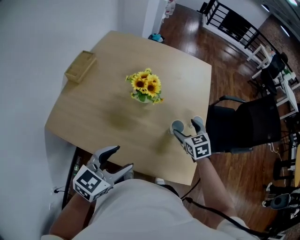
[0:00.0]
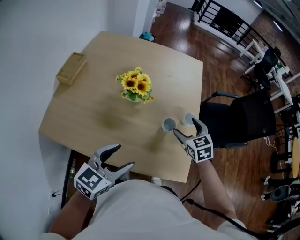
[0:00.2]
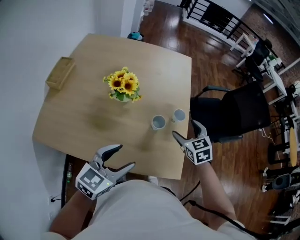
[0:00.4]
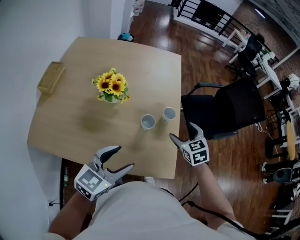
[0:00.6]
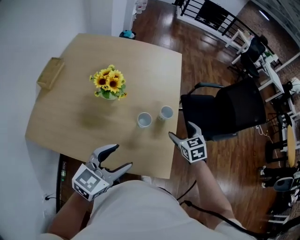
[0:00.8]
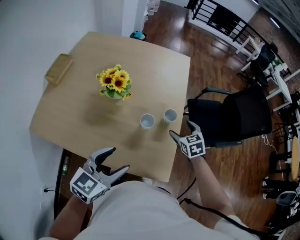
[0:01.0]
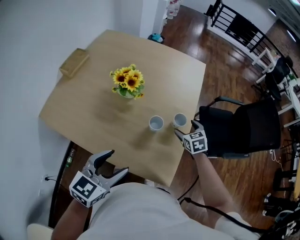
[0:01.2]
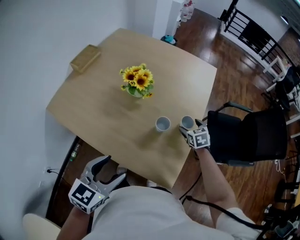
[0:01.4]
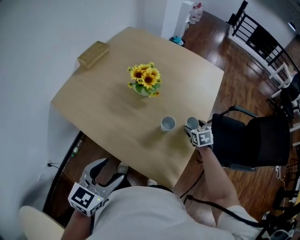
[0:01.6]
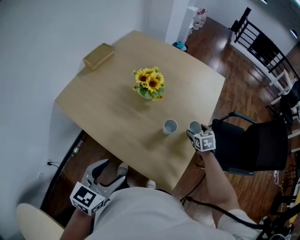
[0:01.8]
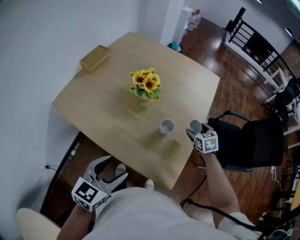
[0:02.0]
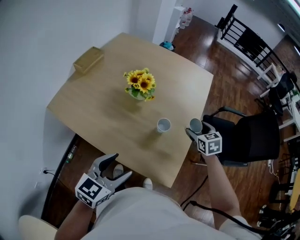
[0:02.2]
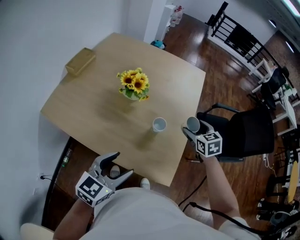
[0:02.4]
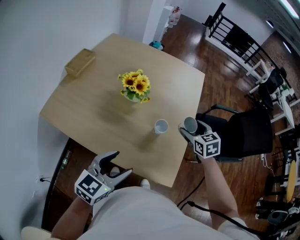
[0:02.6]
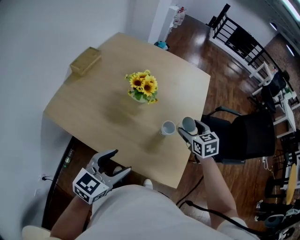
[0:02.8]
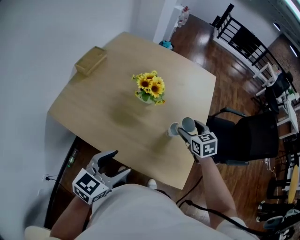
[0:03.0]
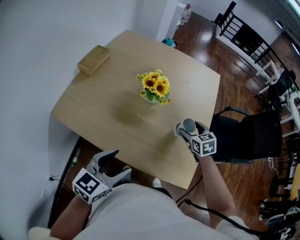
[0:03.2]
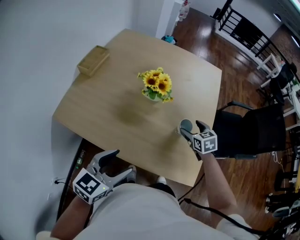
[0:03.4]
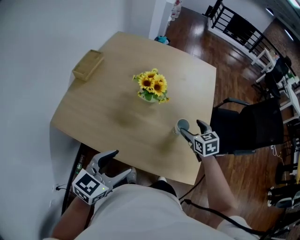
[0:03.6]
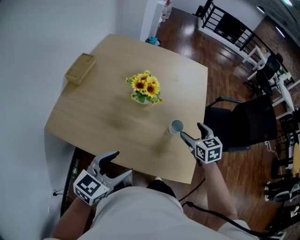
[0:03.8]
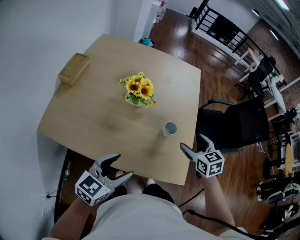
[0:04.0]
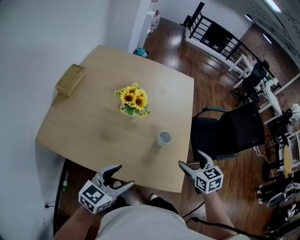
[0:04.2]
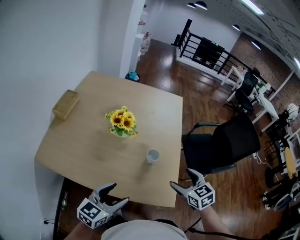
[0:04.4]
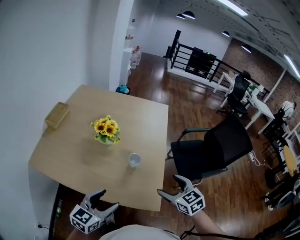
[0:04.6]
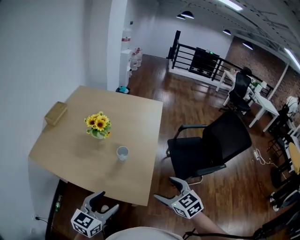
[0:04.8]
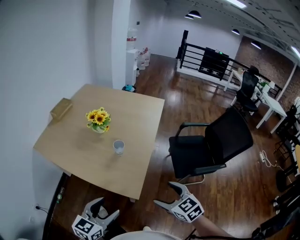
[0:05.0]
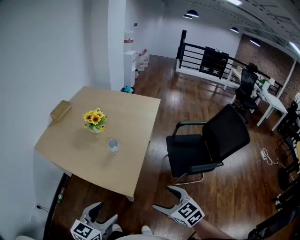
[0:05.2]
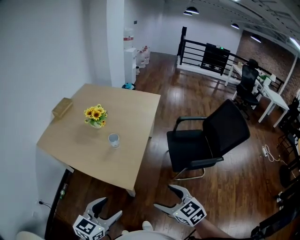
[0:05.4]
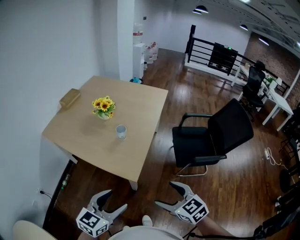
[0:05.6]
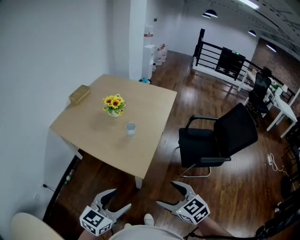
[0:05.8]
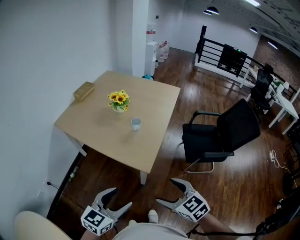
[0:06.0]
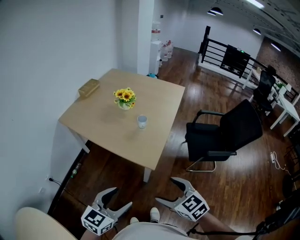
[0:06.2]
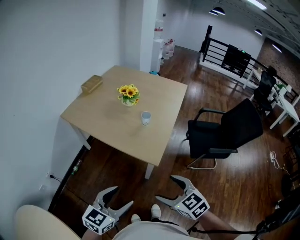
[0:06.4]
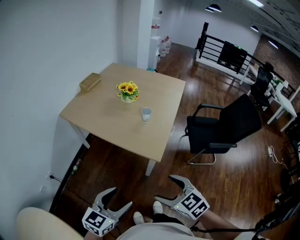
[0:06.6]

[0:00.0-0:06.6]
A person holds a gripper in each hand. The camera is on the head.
0:00.0 to 0:01.6: The left gripper ends up about 15 cm from where it was, and turns by about 20 degrees. Meanwhile the right gripper shifts by some 20 cm.
0:01.6 to 0:03.2: The left gripper is displaced to the left by approximately 10 cm. Meanwhile the right gripper goes some 15 cm to the left, upward and backward.
0:03.2 to 0:05.0: The left gripper shifts some 30 cm to the right and backward. The right gripper goes about 40 cm backward and to the right.
0:05.0 to 0:06.6: Both grippers move backward and to the left, some 25 cm.

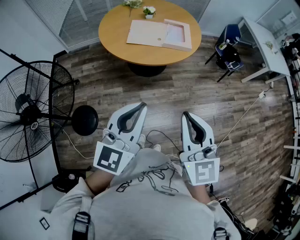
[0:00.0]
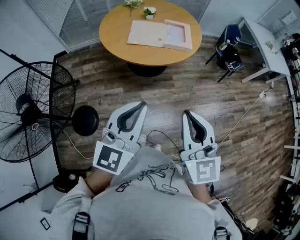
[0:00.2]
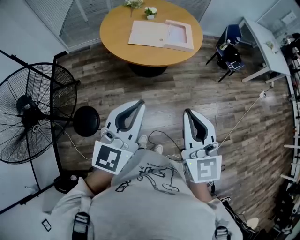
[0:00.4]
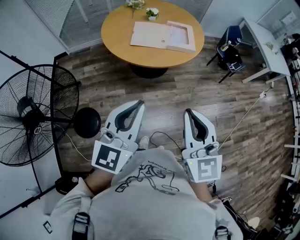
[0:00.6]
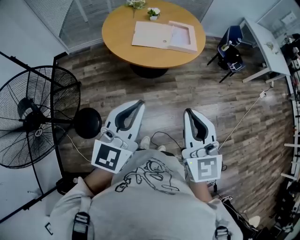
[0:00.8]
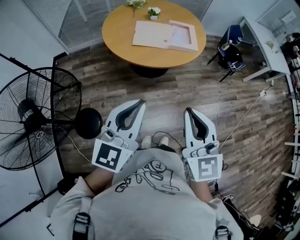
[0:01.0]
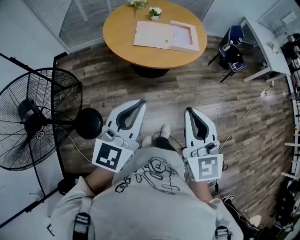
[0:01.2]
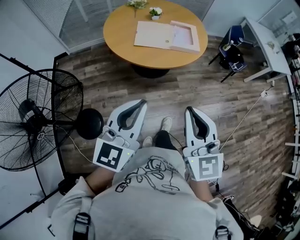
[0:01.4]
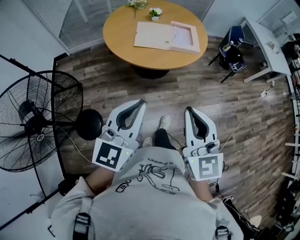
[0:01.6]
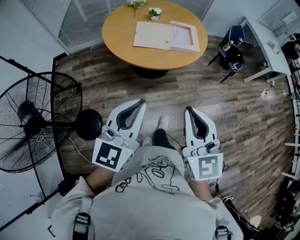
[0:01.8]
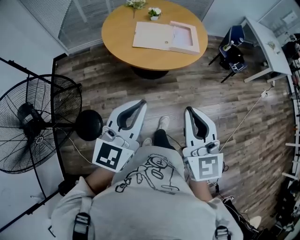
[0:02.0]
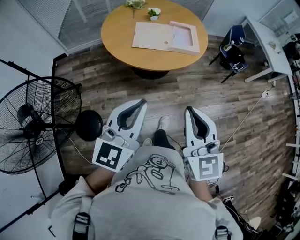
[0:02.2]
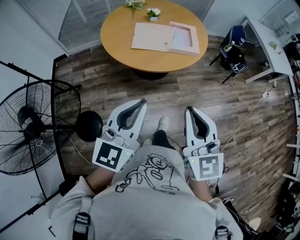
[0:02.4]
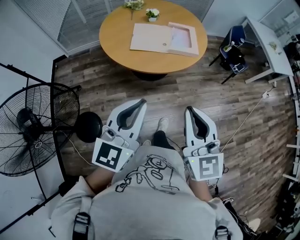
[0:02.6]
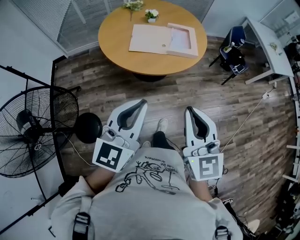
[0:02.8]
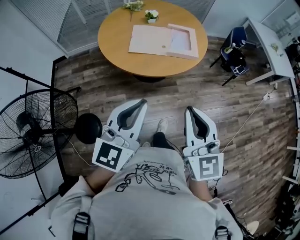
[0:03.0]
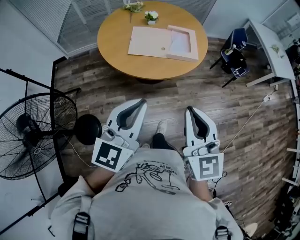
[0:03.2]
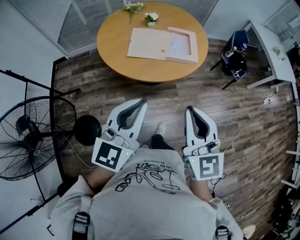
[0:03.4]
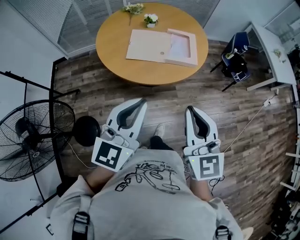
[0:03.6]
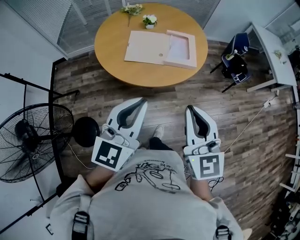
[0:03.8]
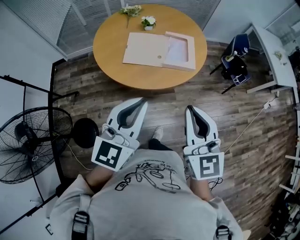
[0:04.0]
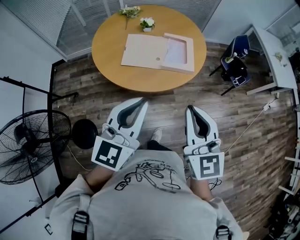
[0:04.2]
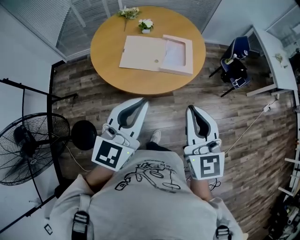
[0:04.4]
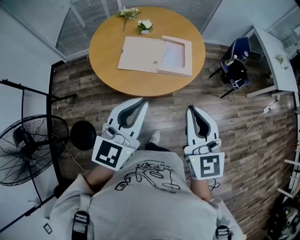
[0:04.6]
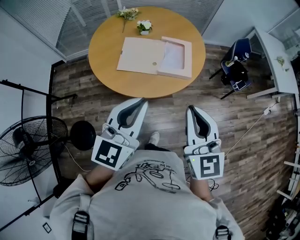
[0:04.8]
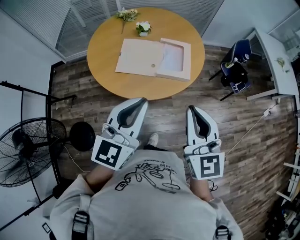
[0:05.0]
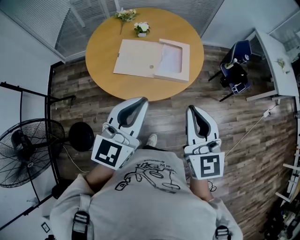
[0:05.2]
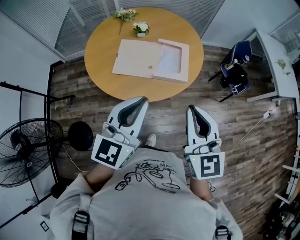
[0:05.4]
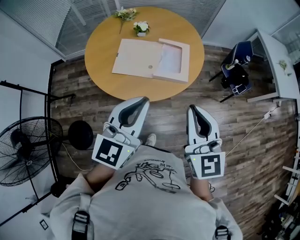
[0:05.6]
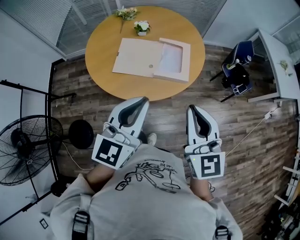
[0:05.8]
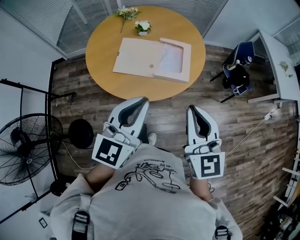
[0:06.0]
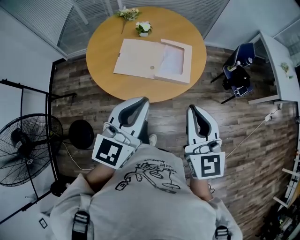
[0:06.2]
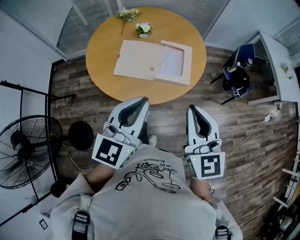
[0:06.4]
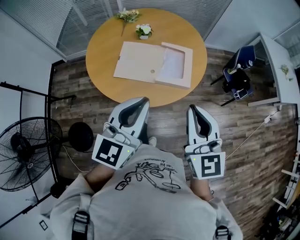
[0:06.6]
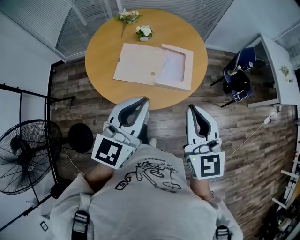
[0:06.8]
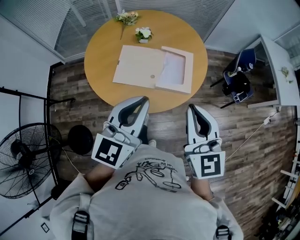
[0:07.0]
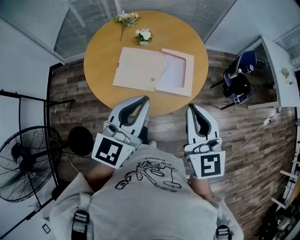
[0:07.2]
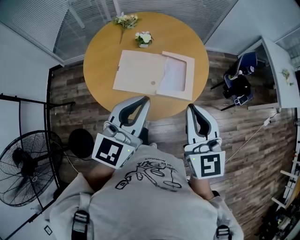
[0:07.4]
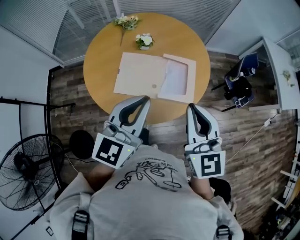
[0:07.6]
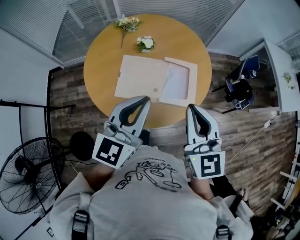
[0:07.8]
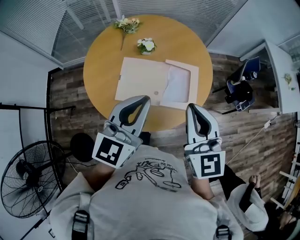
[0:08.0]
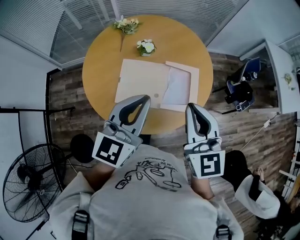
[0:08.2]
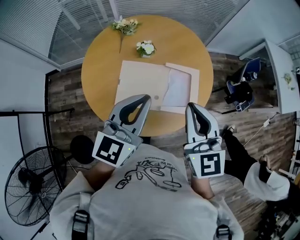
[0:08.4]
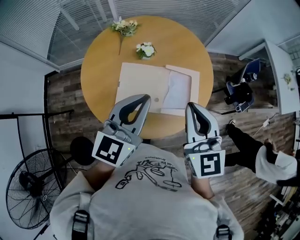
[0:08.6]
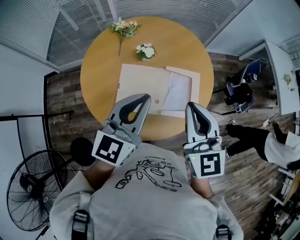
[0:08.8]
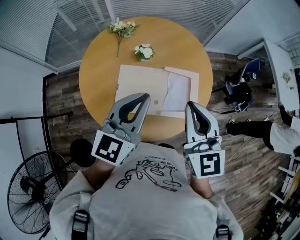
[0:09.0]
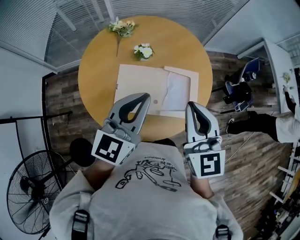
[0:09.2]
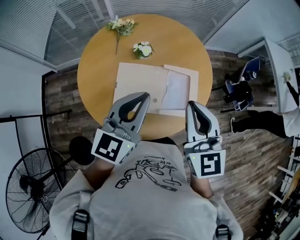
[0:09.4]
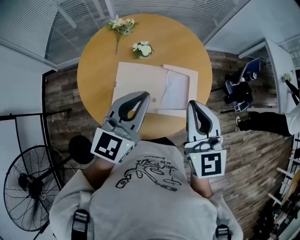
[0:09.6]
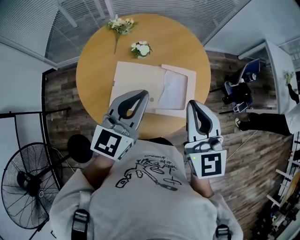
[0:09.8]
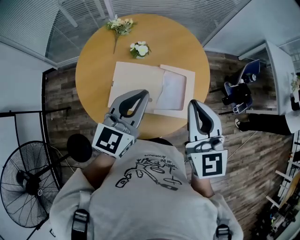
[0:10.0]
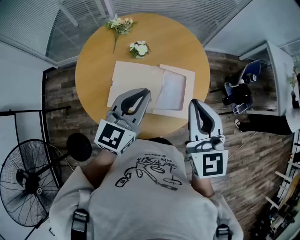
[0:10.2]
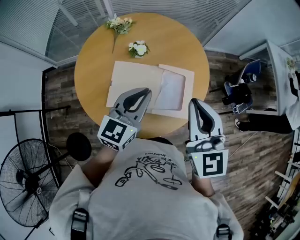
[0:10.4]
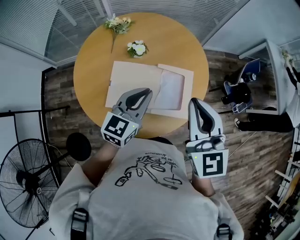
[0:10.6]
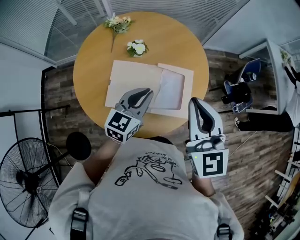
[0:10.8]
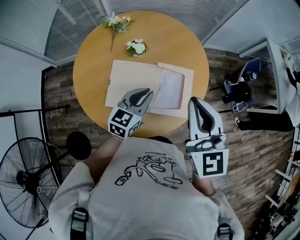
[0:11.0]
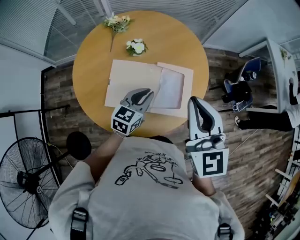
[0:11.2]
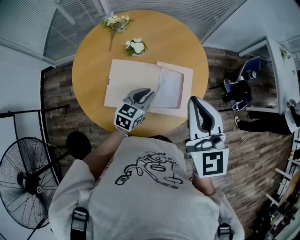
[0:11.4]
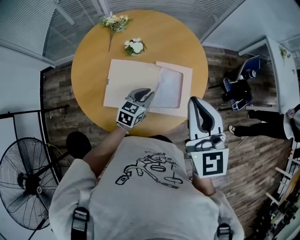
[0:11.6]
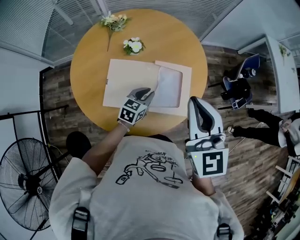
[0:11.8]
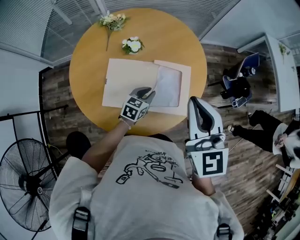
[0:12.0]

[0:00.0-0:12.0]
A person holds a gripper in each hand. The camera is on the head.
0:00.0 to 0:01.6: The left gripper shifts roughly 10 cm to the left and forward. The right gripper goes about 10 cm to the left.
0:01.6 to 0:03.0: Both grippers travel together forward, some 10 cm.
0:03.0 to 0:04.4: The two grippers go about 20 cm forward and to the right.
0:04.4 to 0:06.0: The two grippers go some 10 cm forward and to the right.
0:06.0 to 0:07.6: The two grippers go approximately 15 cm forward.
0:07.6 to 0:09.0: The right gripper shifts about 15 cm forward and to the left, while the left gripper goes approximately 15 cm forward.
0:09.0 to 0:10.4: The left gripper moves downward and to the right, some 10 cm; the right gripper is displaced to the right by approximately 5 cm.
0:10.4 to 0:12.0: The left gripper heads downward, covering some 25 cm, and rotates about 30 degrees.

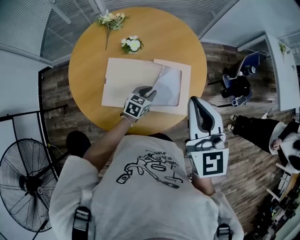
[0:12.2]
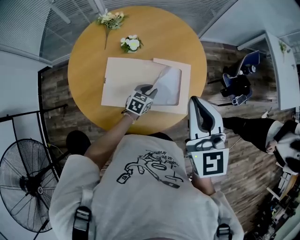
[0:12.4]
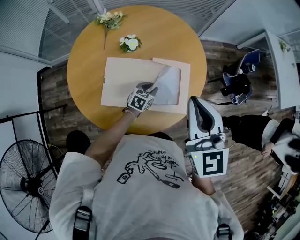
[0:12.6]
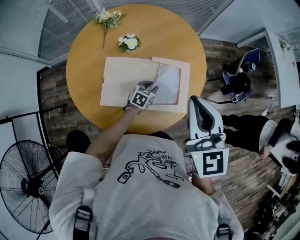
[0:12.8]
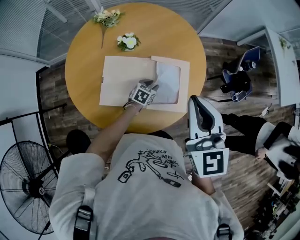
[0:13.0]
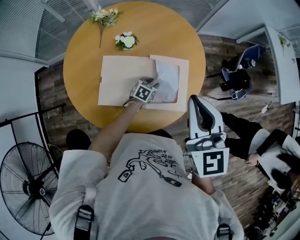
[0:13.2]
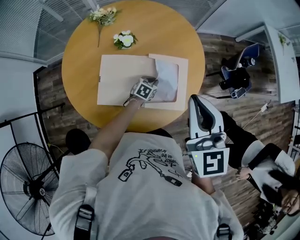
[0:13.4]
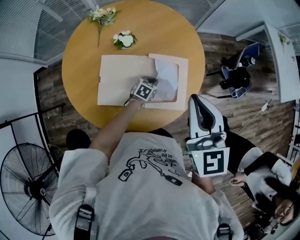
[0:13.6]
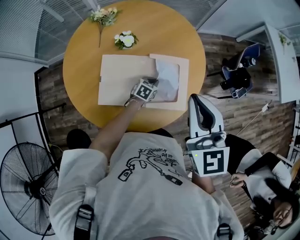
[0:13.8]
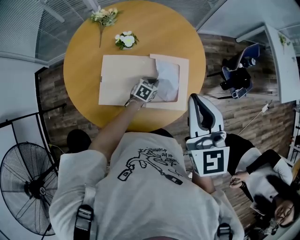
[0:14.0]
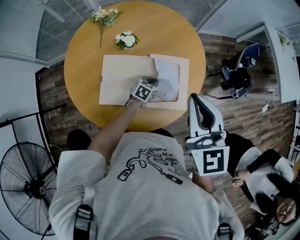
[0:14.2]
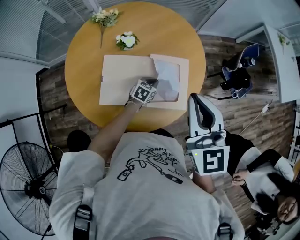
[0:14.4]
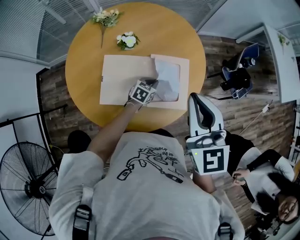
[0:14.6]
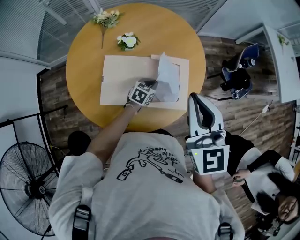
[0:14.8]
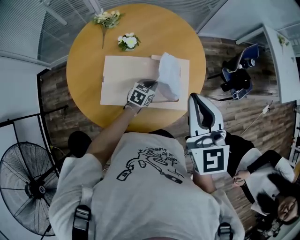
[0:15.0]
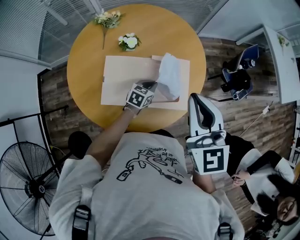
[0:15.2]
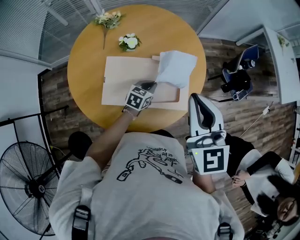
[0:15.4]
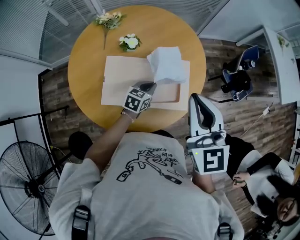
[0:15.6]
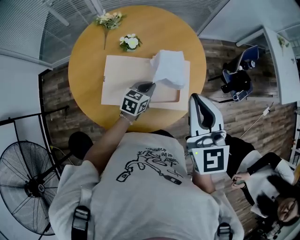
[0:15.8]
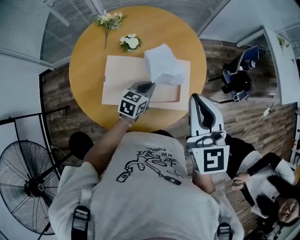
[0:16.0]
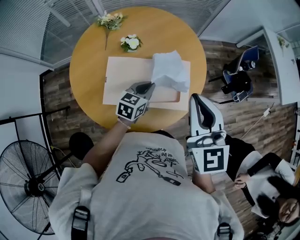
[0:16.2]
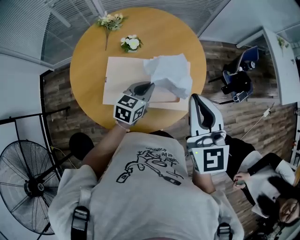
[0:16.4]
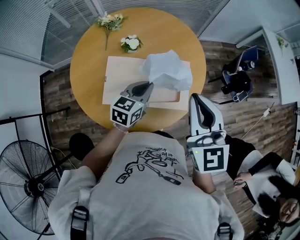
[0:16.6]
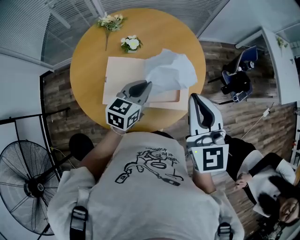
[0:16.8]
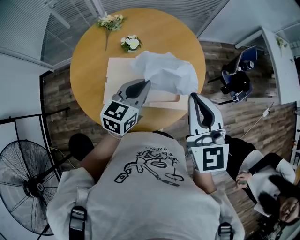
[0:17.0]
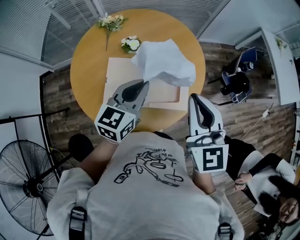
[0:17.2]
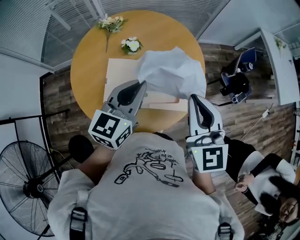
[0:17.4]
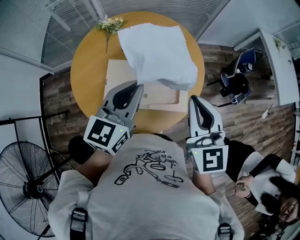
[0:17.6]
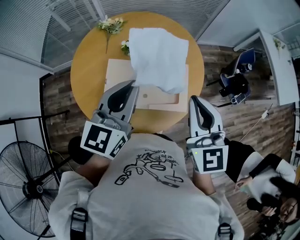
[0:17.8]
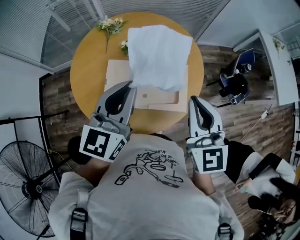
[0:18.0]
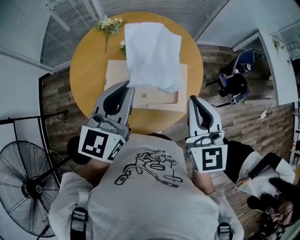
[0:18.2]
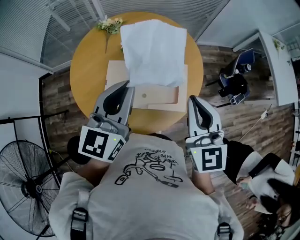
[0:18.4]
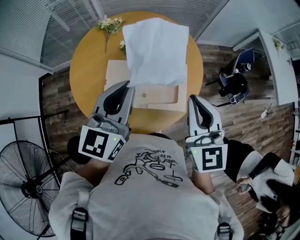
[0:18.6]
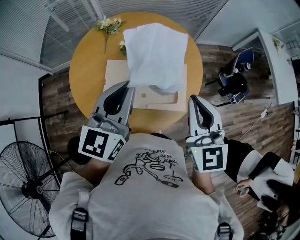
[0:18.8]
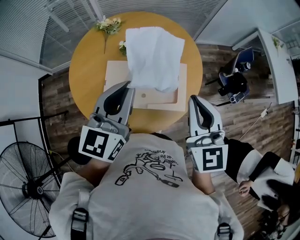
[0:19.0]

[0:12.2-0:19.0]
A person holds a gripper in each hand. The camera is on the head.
0:12.2 to 0:13.6: The left gripper is displaced downward and forward by roughly 10 cm.
0:13.6 to 0:15.0: The left gripper travels upward by approximately 10 cm.
0:15.0 to 0:16.2: The left gripper shifts roughly 15 cm upward.
0:16.2 to 0:17.6: The left gripper moves upward, about 25 cm, and swivels about 30 degrees.
0:17.6 to 0:19.0: The grippers make only small movements.
